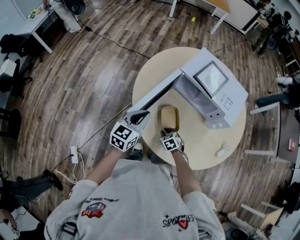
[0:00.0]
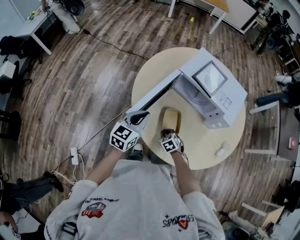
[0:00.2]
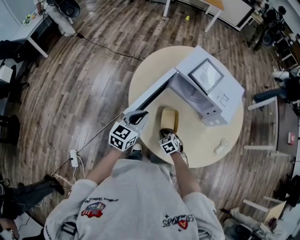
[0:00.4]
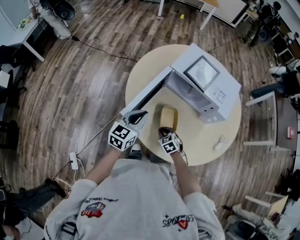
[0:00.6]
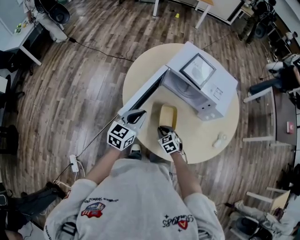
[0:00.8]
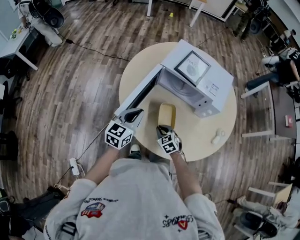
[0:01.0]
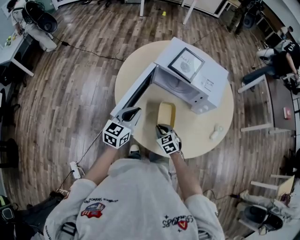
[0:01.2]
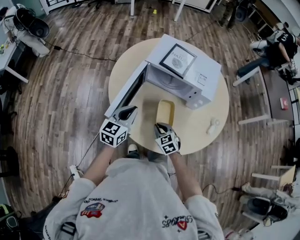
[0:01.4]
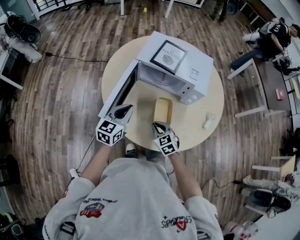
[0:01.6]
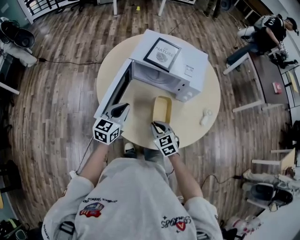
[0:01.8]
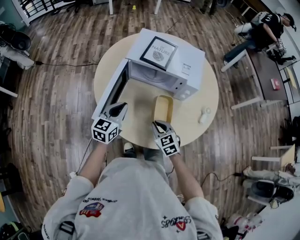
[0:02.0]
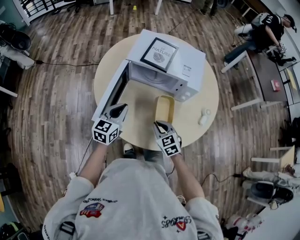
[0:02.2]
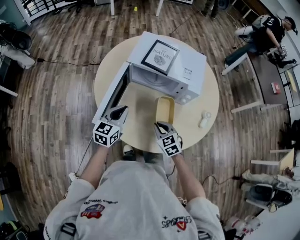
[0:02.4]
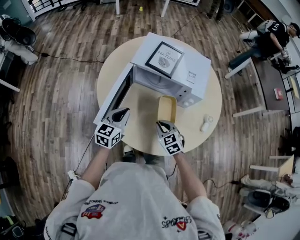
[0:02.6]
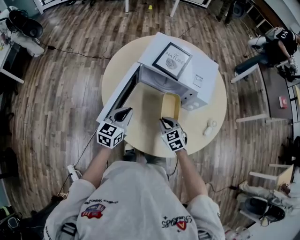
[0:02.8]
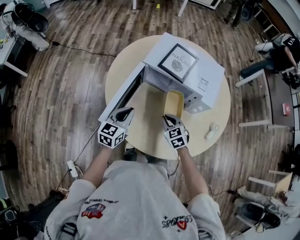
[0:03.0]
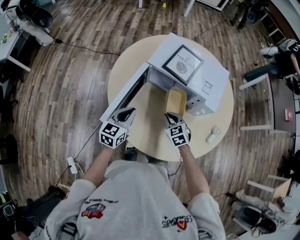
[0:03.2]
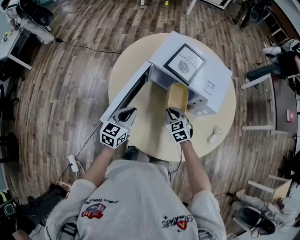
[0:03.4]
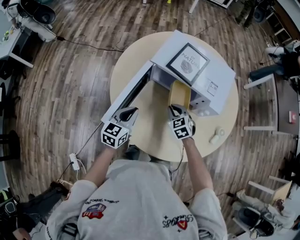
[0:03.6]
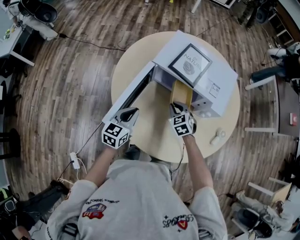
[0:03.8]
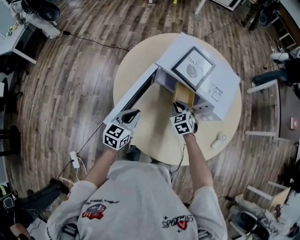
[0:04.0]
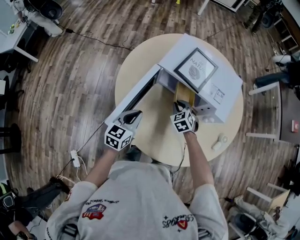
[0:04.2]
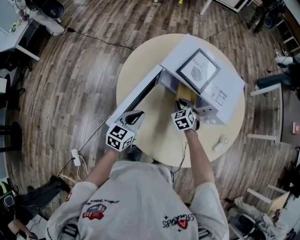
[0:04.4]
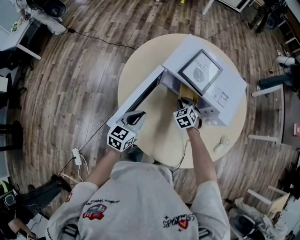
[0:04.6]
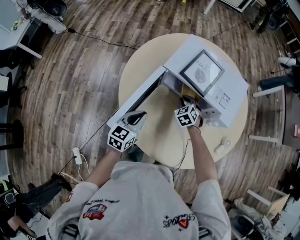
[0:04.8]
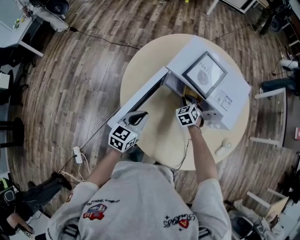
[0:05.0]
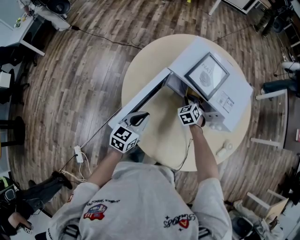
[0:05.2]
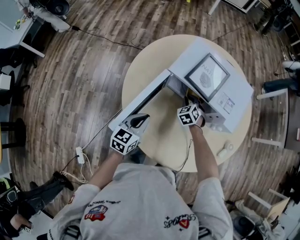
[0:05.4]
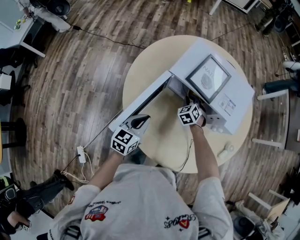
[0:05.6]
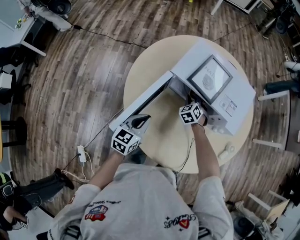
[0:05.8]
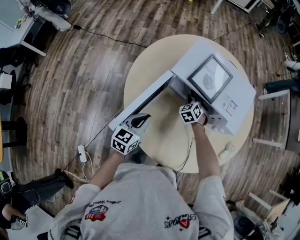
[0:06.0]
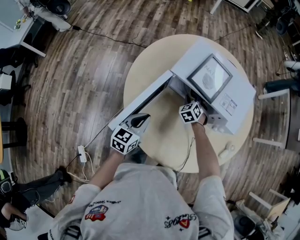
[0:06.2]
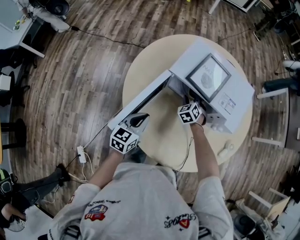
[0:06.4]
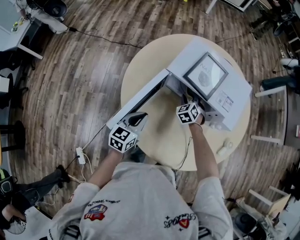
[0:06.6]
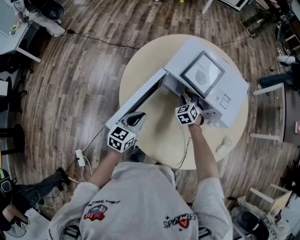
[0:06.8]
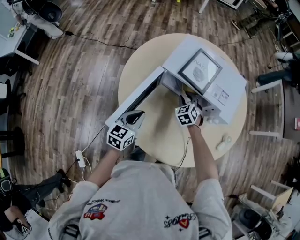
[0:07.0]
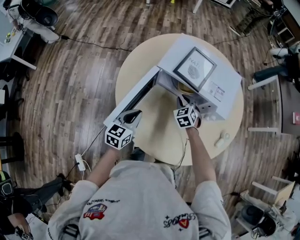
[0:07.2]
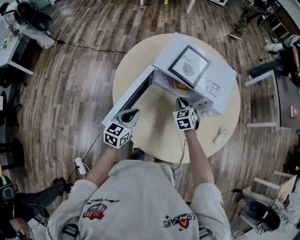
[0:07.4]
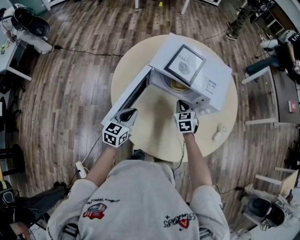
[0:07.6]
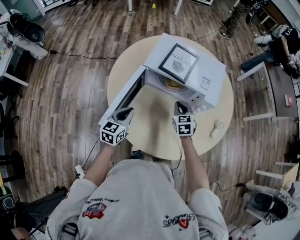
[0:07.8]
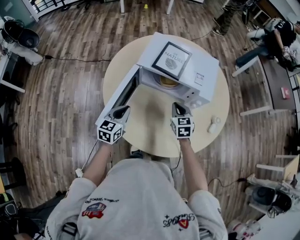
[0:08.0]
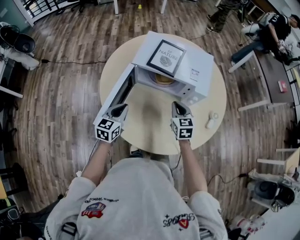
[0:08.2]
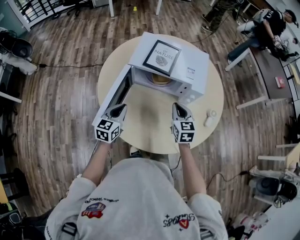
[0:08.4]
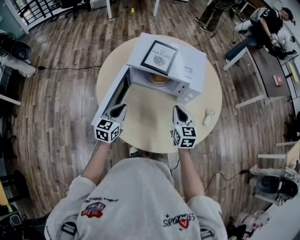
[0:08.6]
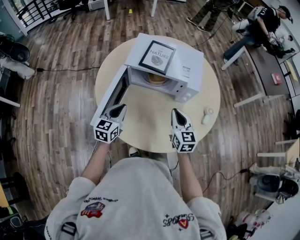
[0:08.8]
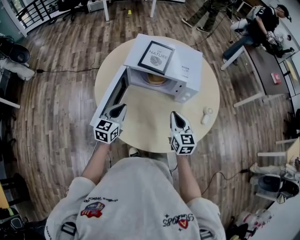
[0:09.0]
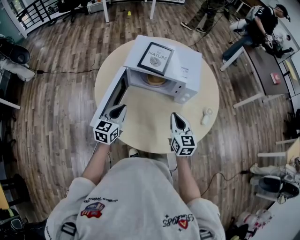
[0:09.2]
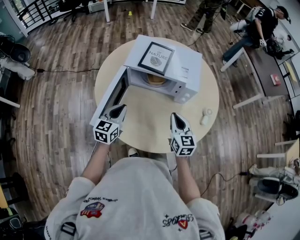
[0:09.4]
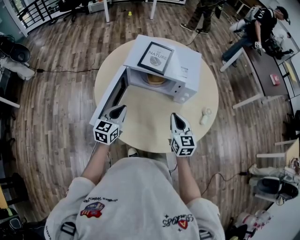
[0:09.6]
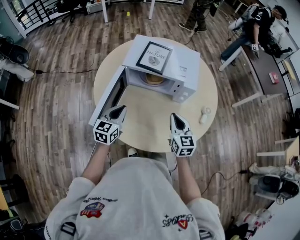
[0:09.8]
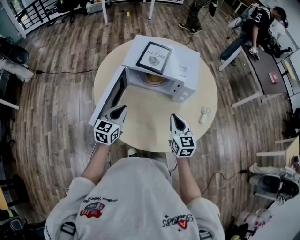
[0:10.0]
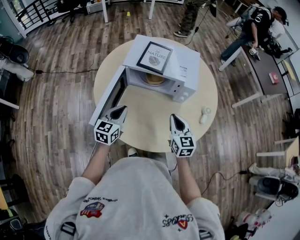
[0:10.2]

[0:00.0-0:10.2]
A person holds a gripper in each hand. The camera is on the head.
0:00.0 to 0:01.4: The left gripper shifts roughly 5 cm to the right, while the right gripper shifts approximately 10 cm upward and to the right.
0:01.4 to 0:03.0: The right gripper heads forward, covering roughly 10 cm. The left gripper shifts by about 5 cm.
0:03.0 to 0:04.4: The right gripper is displaced forward by some 15 cm.
0:04.4 to 0:05.8: The right gripper heads forward, covering roughly 10 cm.
0:05.8 to 0:07.2: The right gripper travels backward and upward by approximately 10 cm.
0:07.2 to 0:08.8: The right gripper is displaced backward, upward and to the right by some 25 cm, and rotates approximately 40 degrees. The left gripper ends up roughly 5 cm from where it was.
0:08.8 to 0:10.2: The grippers move only a little.

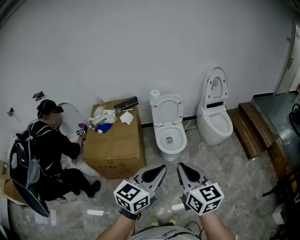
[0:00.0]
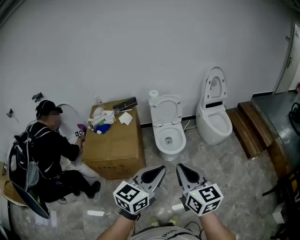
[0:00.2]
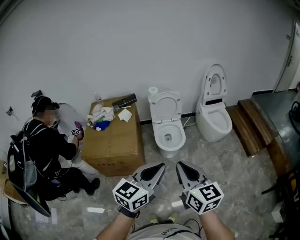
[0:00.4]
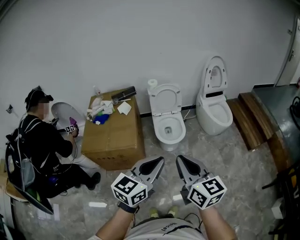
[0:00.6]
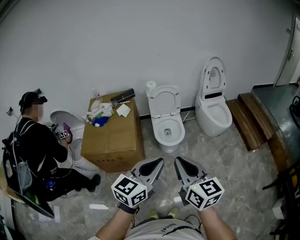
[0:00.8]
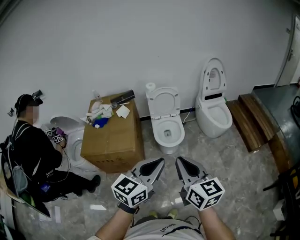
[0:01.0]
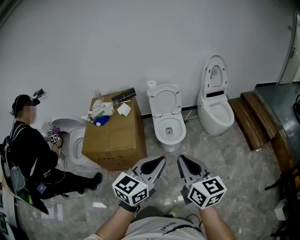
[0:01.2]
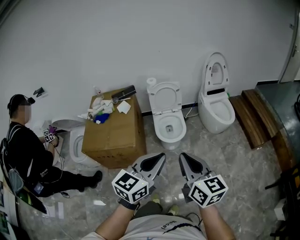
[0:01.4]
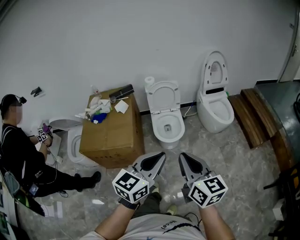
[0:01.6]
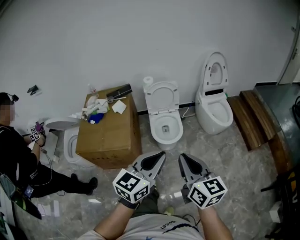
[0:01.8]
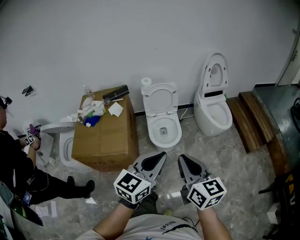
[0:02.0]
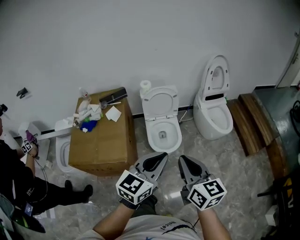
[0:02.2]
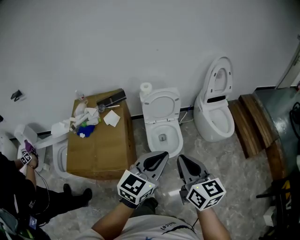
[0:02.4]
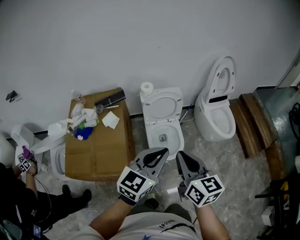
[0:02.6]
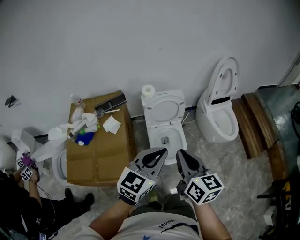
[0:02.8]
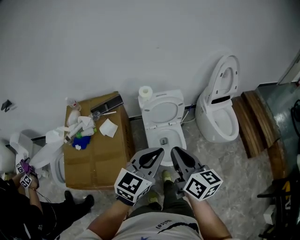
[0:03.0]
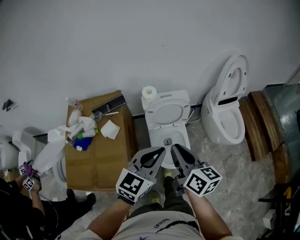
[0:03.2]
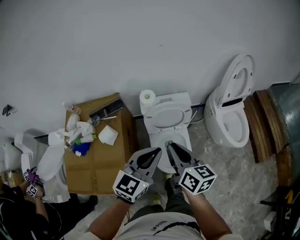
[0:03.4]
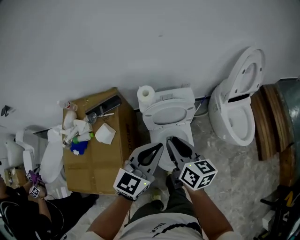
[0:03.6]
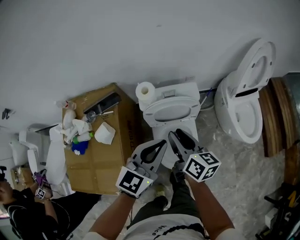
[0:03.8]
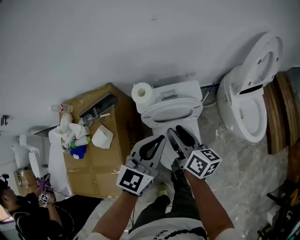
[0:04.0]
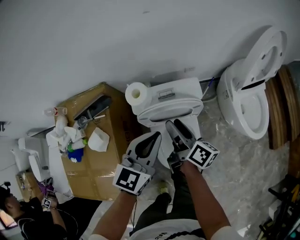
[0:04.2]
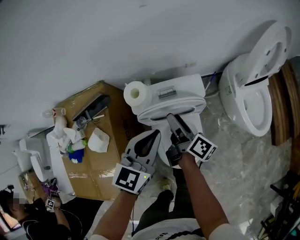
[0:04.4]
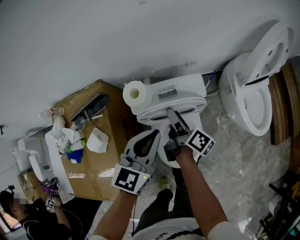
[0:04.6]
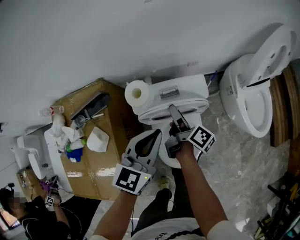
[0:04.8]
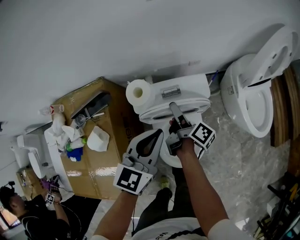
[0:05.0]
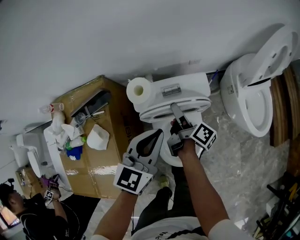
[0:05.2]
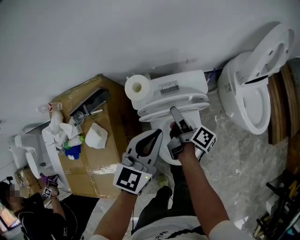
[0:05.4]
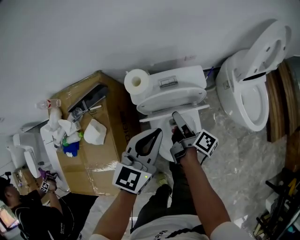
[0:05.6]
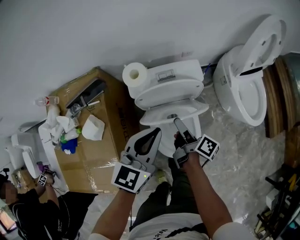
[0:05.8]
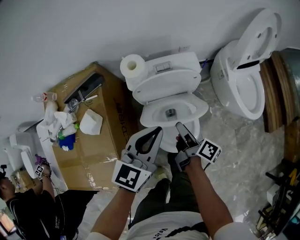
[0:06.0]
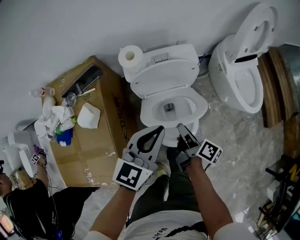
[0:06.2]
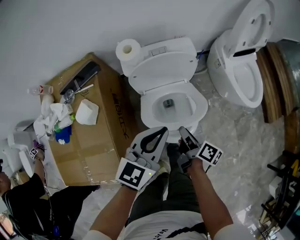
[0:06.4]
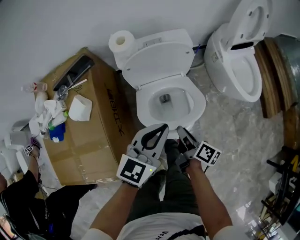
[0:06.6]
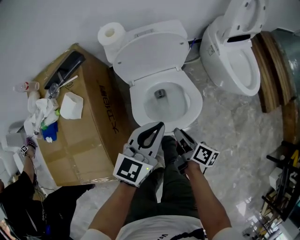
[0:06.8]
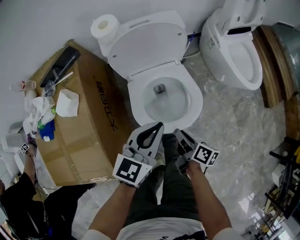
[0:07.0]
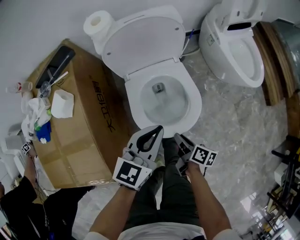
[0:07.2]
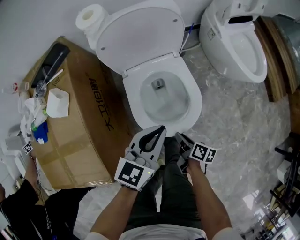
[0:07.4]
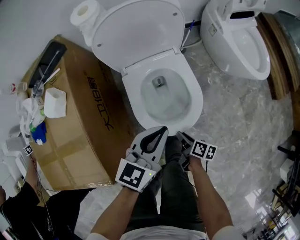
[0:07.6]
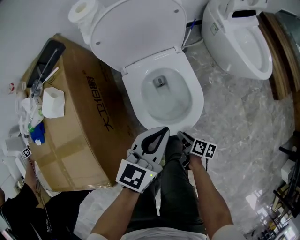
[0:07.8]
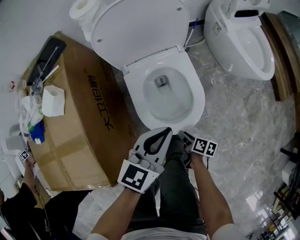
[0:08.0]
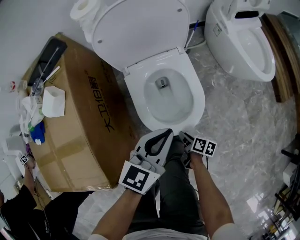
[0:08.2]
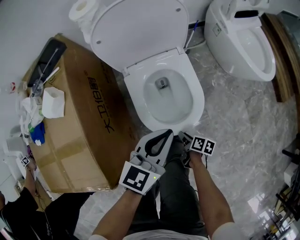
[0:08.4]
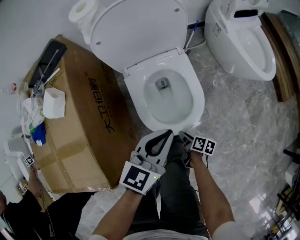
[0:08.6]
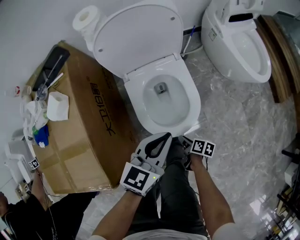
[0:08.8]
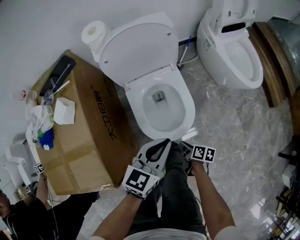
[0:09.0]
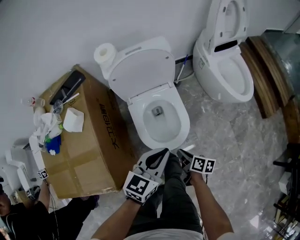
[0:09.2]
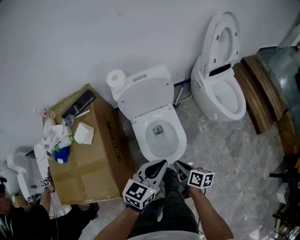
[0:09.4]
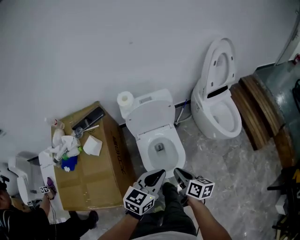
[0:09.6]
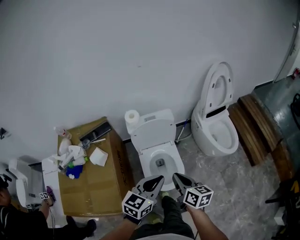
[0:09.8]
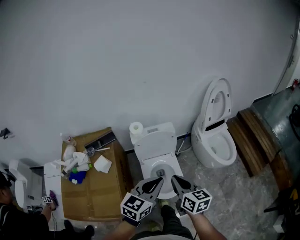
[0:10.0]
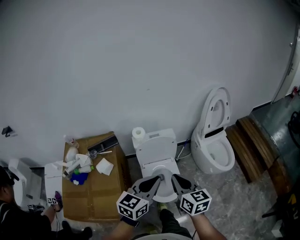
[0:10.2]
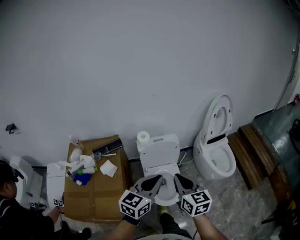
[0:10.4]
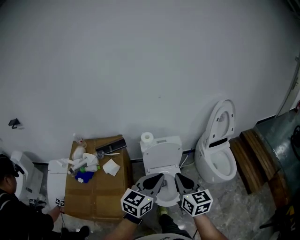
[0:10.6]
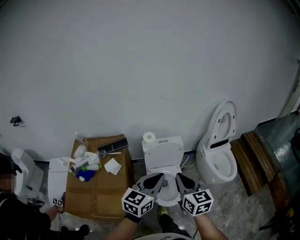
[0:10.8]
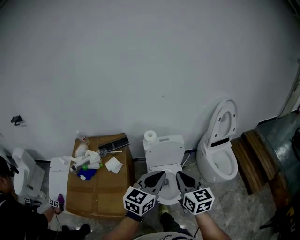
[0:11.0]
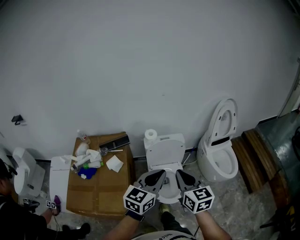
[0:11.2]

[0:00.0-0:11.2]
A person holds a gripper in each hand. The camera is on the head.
0:00.0 to 0:01.6: Both grippers move to the right, approximately 5 cm.
0:01.6 to 0:03.2: The two grippers travel together, forward, roughly 50 cm.
0:03.2 to 0:04.8: Both grippers move forward and downward, roughly 40 cm. The right gripper rotates around the line of its fingers by roughly 50 degrees, clockwise from behind, and opens its fingers.
0:04.8 to 0:06.4: The right gripper is displaced backward by approximately 25 cm, and closes its fingers. The left gripper goes some 20 cm backward.
0:06.4 to 0:08.0: The right gripper shifts about 35 cm downward and backward, and swivels about 20 degrees, while the left gripper moves downward and backward, some 20 cm.
0:08.0 to 0:09.6: The right gripper heads upward, covering roughly 40 cm, and turns by roughly 30 degrees. The left gripper goes approximately 25 cm upward.
0:09.6 to 0:11.2: Both grippers travel together upward, some 25 cm. The left gripper rotates some 20 degrees. The right gripper rotates around the line of its fingers by about 40 degrees, counterclockwise from behind.

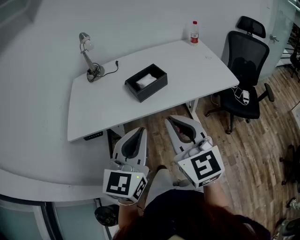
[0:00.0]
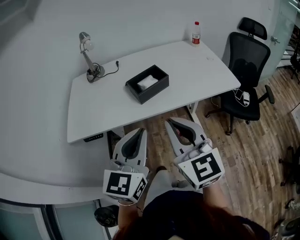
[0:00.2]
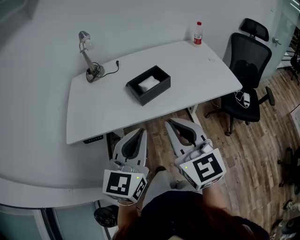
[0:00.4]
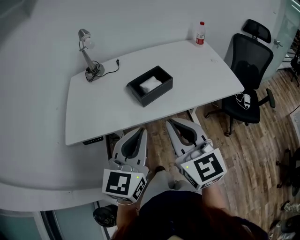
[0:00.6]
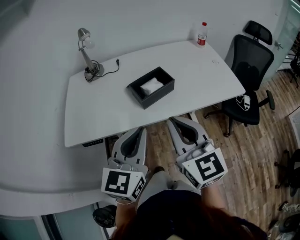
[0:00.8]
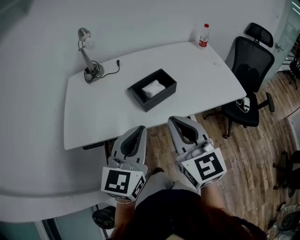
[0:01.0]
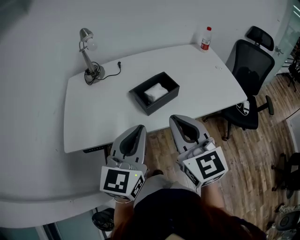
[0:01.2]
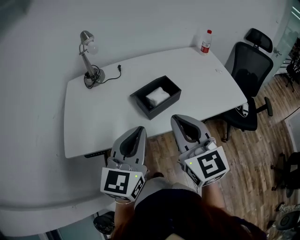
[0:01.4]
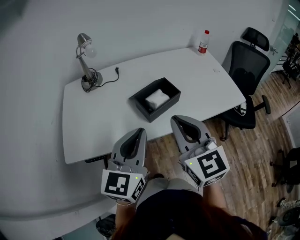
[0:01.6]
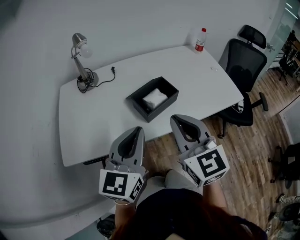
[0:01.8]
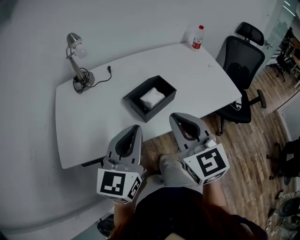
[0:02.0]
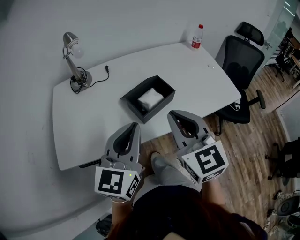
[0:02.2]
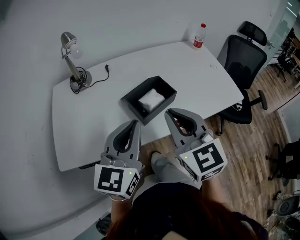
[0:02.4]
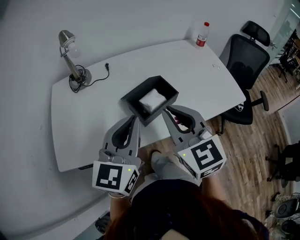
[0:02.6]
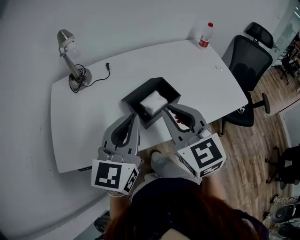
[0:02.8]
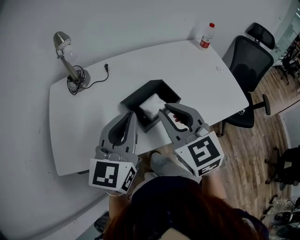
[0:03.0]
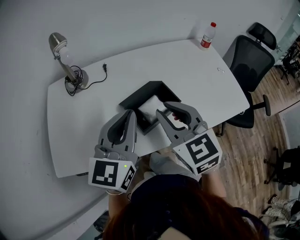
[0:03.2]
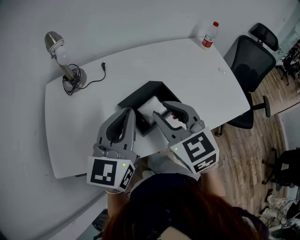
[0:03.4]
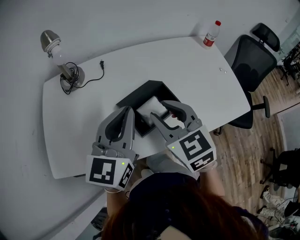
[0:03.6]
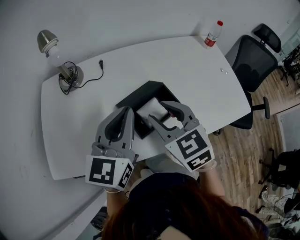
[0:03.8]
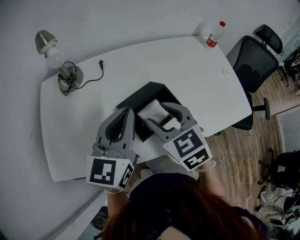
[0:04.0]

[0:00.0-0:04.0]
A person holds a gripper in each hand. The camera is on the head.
0:00.0 to 0:01.4: The two grippers go approximately 15 cm forward and to the left.
0:01.4 to 0:02.6: Both grippers travel together forward, about 10 cm.
0:02.6 to 0:04.0: The right gripper heads forward and downward, covering some 15 cm, turns by roughly 20 degrees, and opens up, while the left gripper is displaced forward by roughly 10 cm.
